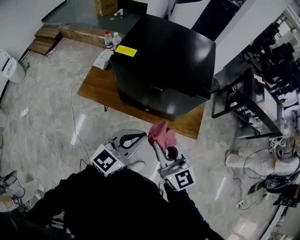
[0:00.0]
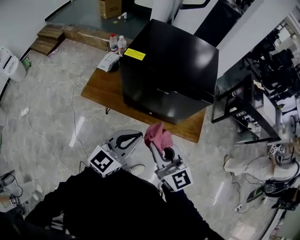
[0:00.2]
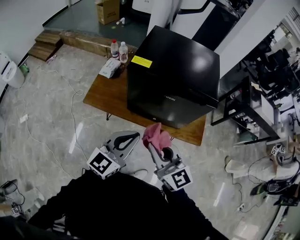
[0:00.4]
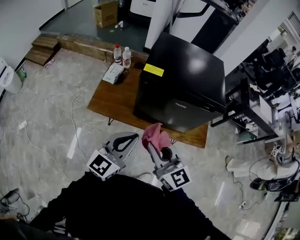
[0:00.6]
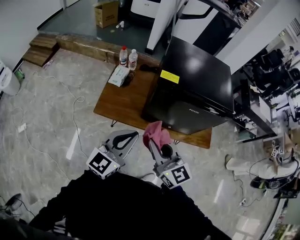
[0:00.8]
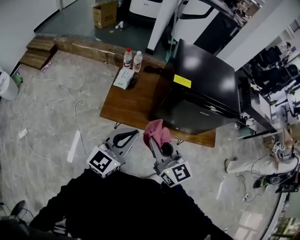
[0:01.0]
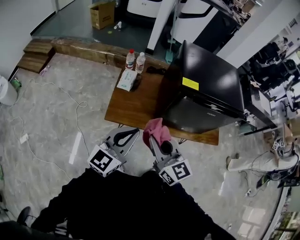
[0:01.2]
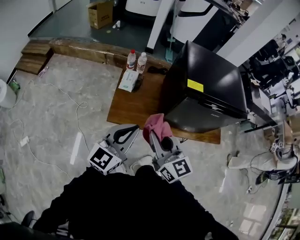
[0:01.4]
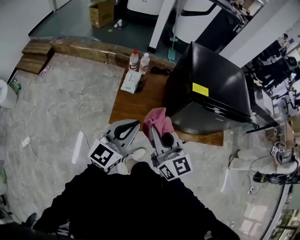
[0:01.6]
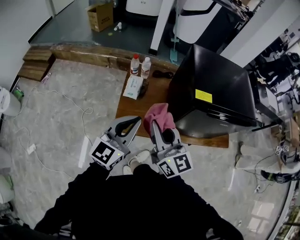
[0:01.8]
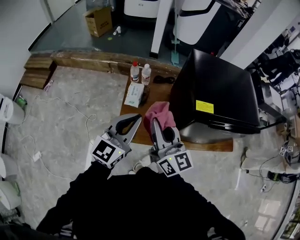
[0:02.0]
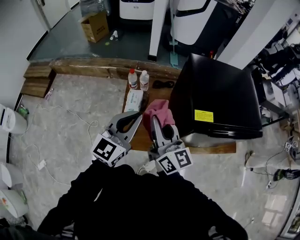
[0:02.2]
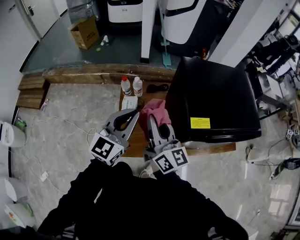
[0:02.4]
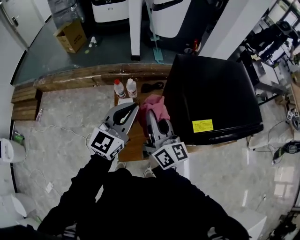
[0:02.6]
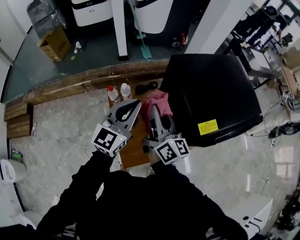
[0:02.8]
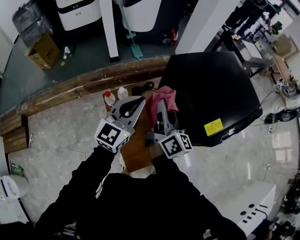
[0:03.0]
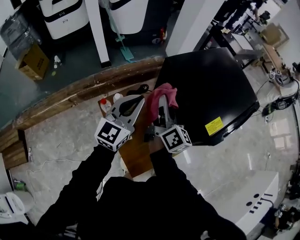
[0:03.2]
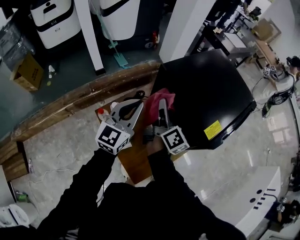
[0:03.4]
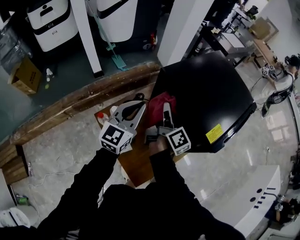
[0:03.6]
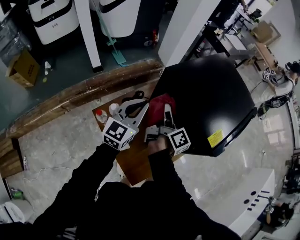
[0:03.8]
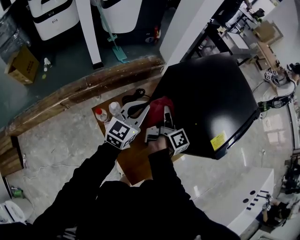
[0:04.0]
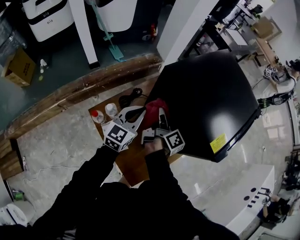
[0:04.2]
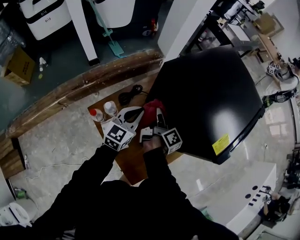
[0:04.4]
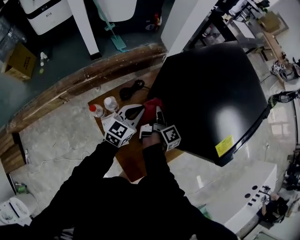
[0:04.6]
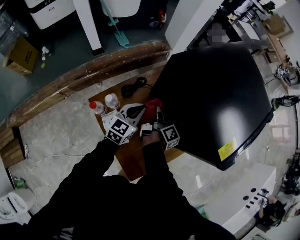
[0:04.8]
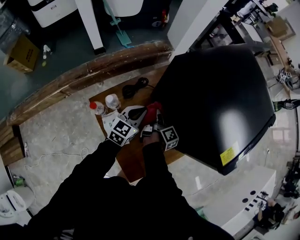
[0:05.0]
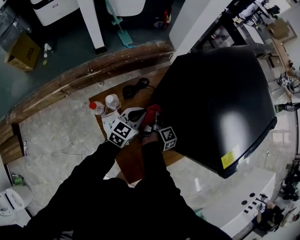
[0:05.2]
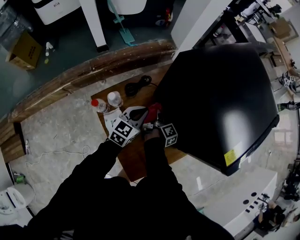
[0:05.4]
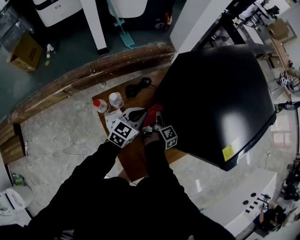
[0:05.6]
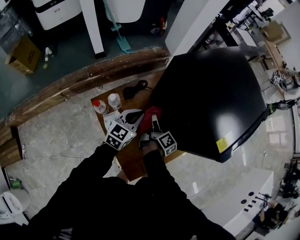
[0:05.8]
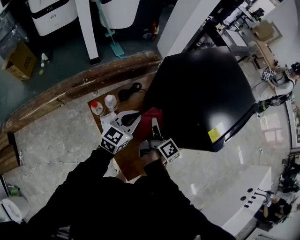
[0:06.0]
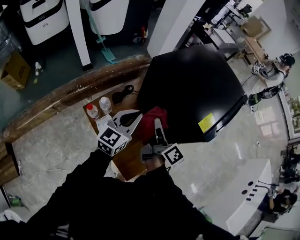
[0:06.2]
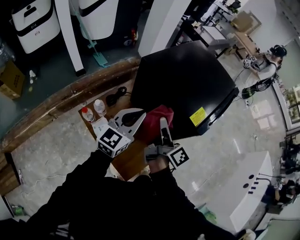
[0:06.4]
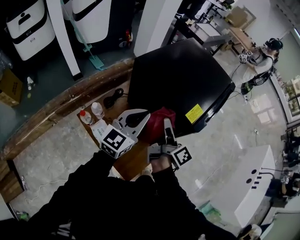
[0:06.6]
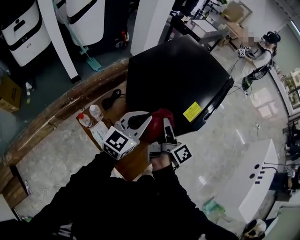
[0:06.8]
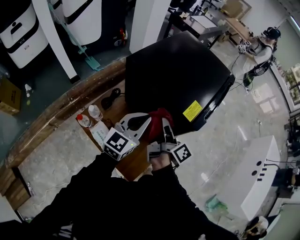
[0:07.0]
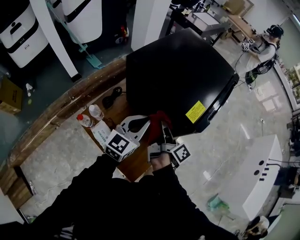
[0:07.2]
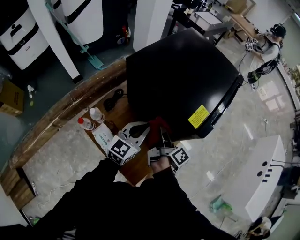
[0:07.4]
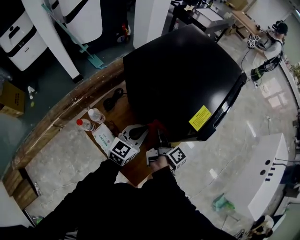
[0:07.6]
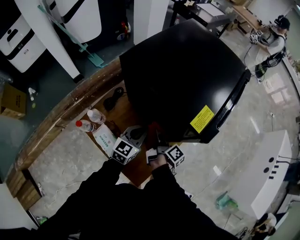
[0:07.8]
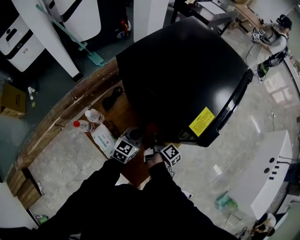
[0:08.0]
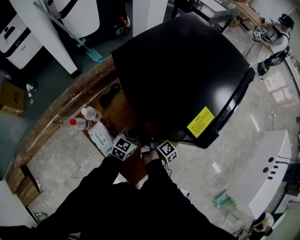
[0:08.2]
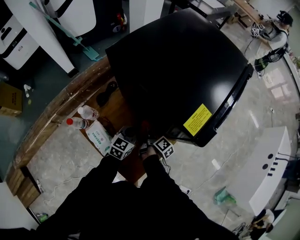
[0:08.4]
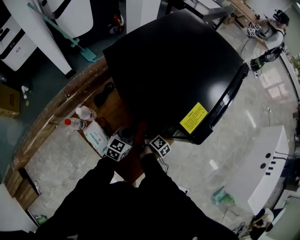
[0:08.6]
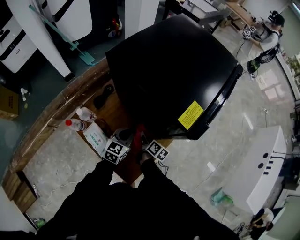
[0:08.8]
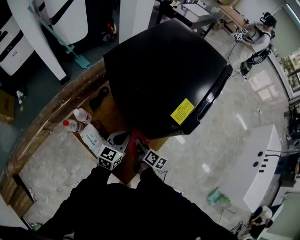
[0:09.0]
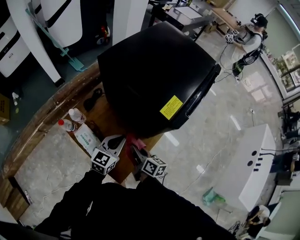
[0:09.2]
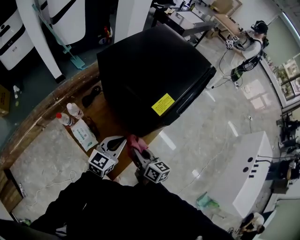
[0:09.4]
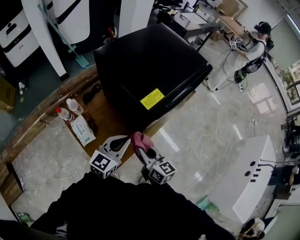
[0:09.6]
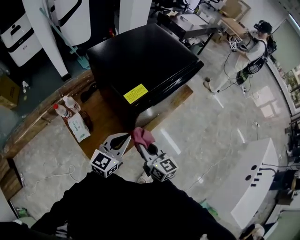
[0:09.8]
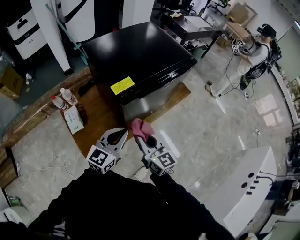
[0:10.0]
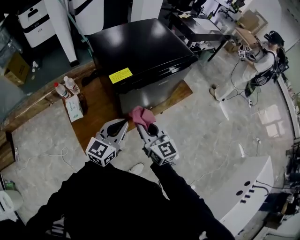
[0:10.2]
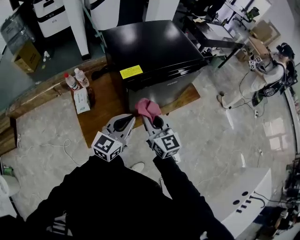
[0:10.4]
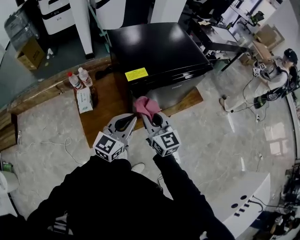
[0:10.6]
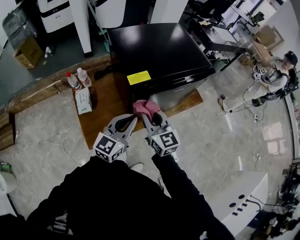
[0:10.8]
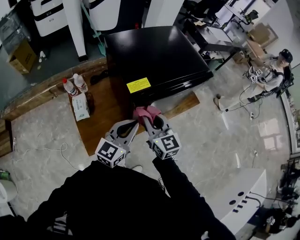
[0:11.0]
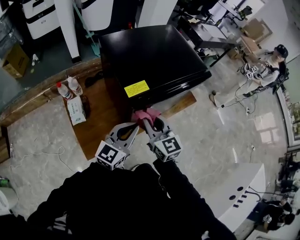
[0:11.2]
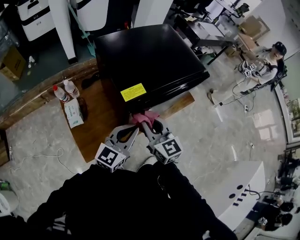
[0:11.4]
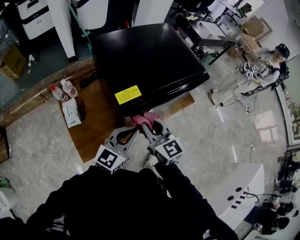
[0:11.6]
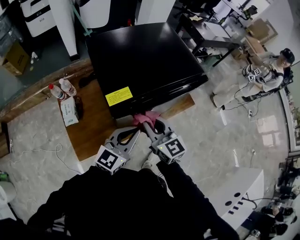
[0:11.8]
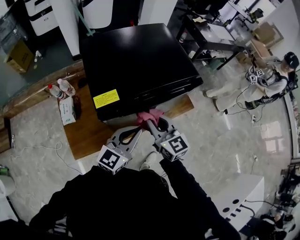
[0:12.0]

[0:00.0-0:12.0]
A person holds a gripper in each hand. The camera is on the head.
0:00.0 to 0:01.6: Both grippers are carried to the left, approximately 50 cm.
0:01.6 to 0:03.0: The left gripper moves about 40 cm, and rotates some 30 degrees, while the right gripper moves approximately 40 cm, and turns by approximately 60 degrees.
0:03.0 to 0:04.4: The two grippers go some 20 cm downward and forward. The right gripper changes its angle by about 50 degrees.
0:04.4 to 0:06.0: Both grippers travel together backward, approximately 10 cm. The right gripper goes downward and returns, roughly 20 cm each way, while the left gripper goes downward and returns, some 10 cm each way.
0:06.0 to 0:07.6: The two grippers go roughly 15 cm to the right. The right gripper travels upward and back again, about 15 cm each way, and changes its angle by some 20 degrees; the left gripper goes upward and returns, some 15 cm each way.
0:07.6 to 0:09.0: The right gripper travels downward and backward by about 15 cm, and rotates roughly 30 degrees. The left gripper heads downward, covering about 5 cm.
0:09.0 to 0:10.4: The right gripper shifts roughly 30 cm upward, and rolls counterclockwise, seen from behind, by about 60 degrees. The left gripper changes place by some 35 cm, and changes its angle by some 30 degrees.
0:10.4 to 0:12.0: The grippers both shift forward and to the right by about 15 cm.

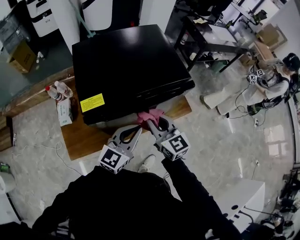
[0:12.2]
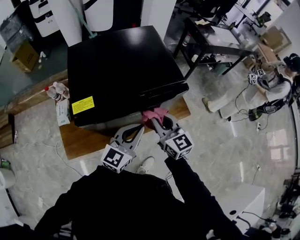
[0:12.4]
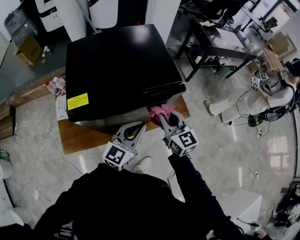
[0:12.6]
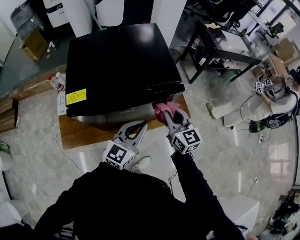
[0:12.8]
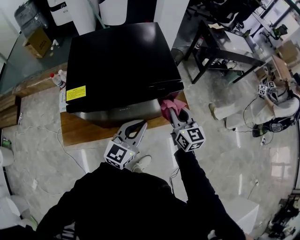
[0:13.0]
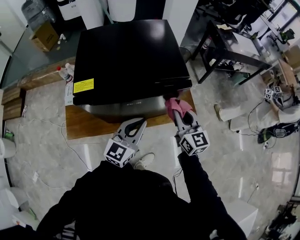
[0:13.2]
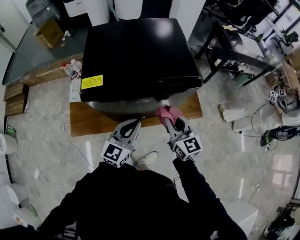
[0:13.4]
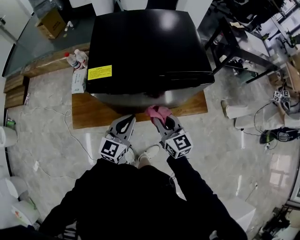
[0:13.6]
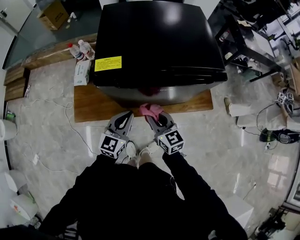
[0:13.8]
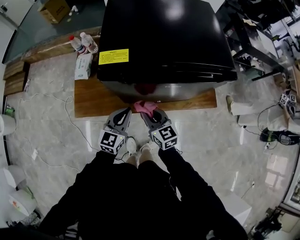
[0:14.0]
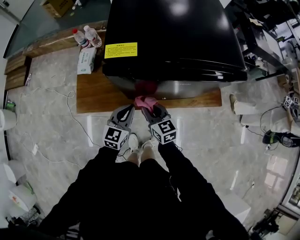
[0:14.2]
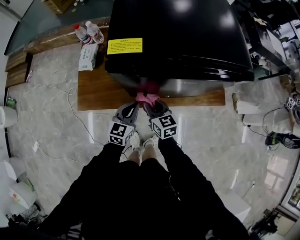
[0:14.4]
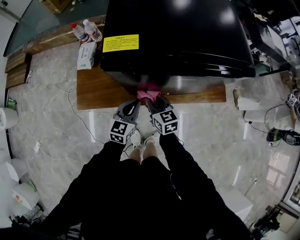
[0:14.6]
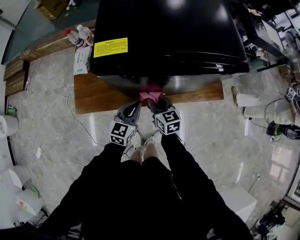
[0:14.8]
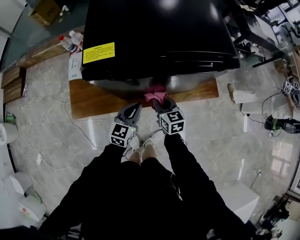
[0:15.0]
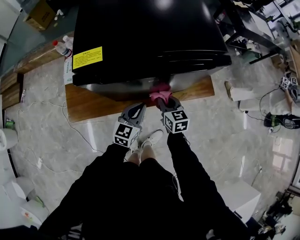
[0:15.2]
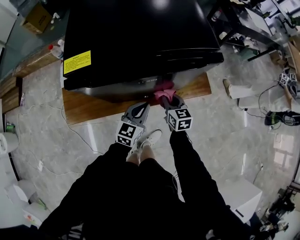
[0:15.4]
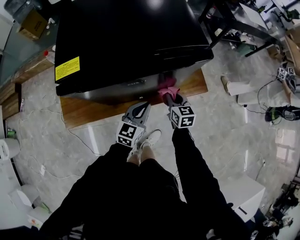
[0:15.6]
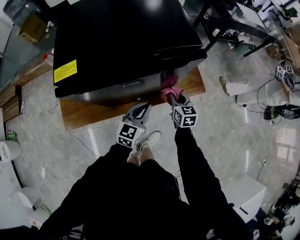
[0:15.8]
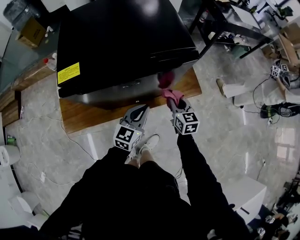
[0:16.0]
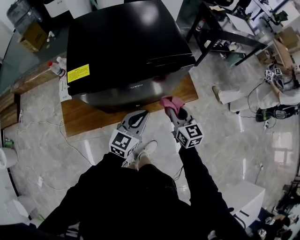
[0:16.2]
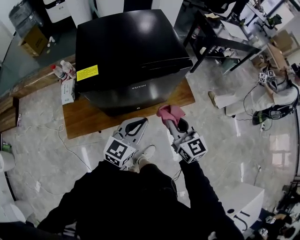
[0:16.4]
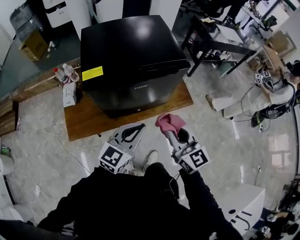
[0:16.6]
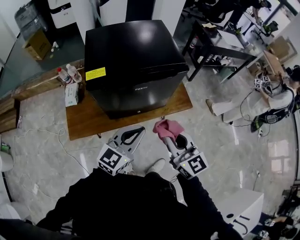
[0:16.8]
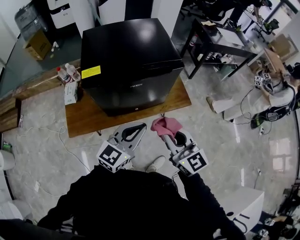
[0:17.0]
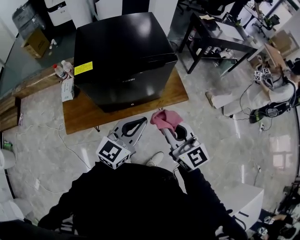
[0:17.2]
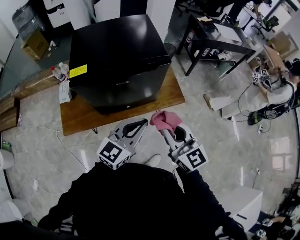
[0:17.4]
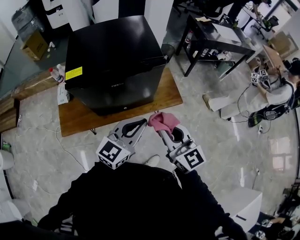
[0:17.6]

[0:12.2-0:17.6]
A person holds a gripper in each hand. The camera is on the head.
0:12.2 to 0:13.6: Both grippers move downward, approximately 10 cm. The left gripper reaches some 10 cm to the right, then returns, and rotates approximately 20 degrees, while the right gripper goes to the right and returns, about 15 cm each way.
0:13.6 to 0:15.0: The two grippers go some 15 cm downward.
0:15.0 to 0:16.2: Both grippers move to the right and upward, roughly 20 cm.
0:16.2 to 0:17.6: The left gripper shifts about 20 cm upward, backward and to the right, while the right gripper heads upward and backward, covering about 25 cm.

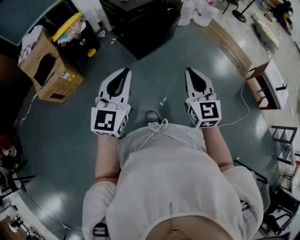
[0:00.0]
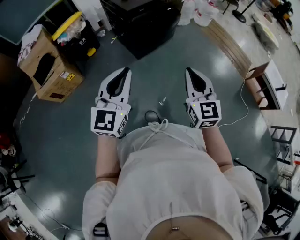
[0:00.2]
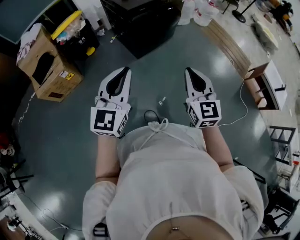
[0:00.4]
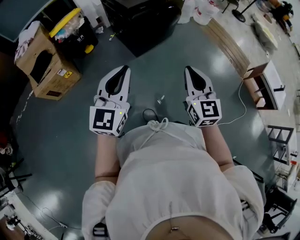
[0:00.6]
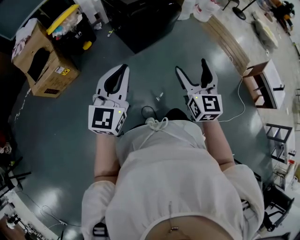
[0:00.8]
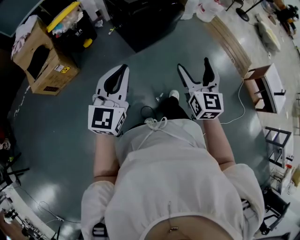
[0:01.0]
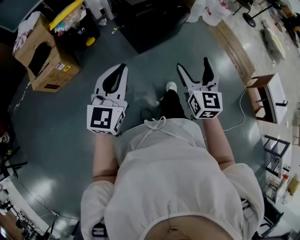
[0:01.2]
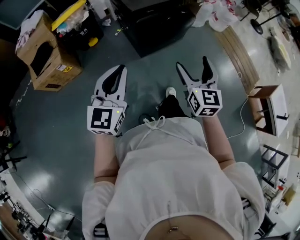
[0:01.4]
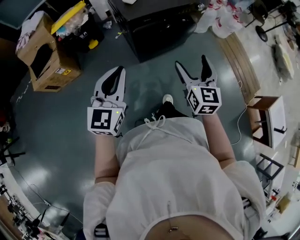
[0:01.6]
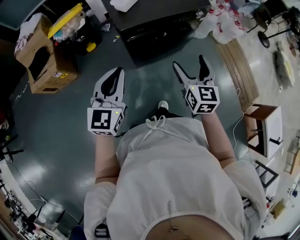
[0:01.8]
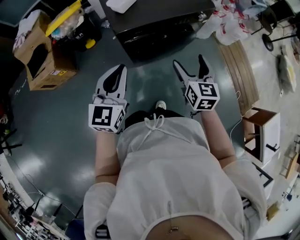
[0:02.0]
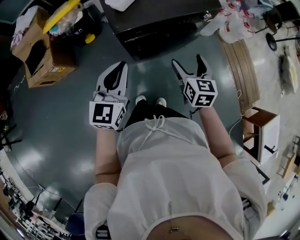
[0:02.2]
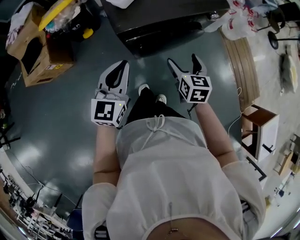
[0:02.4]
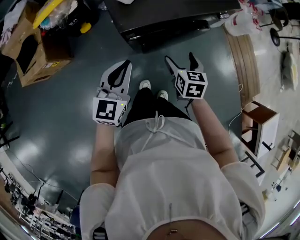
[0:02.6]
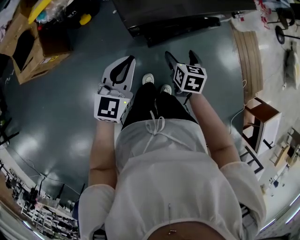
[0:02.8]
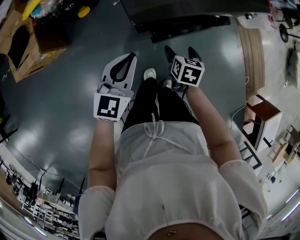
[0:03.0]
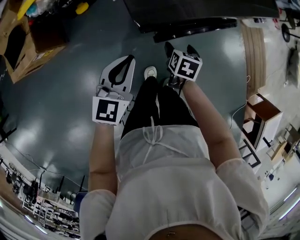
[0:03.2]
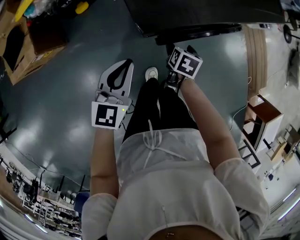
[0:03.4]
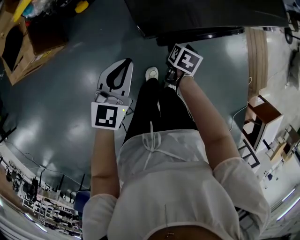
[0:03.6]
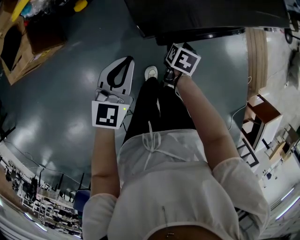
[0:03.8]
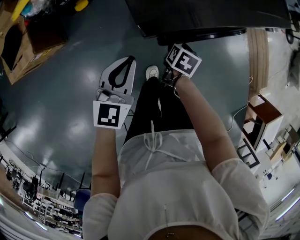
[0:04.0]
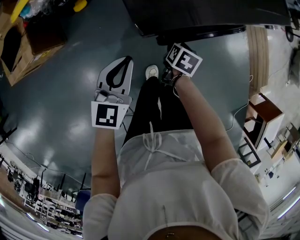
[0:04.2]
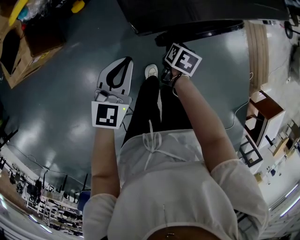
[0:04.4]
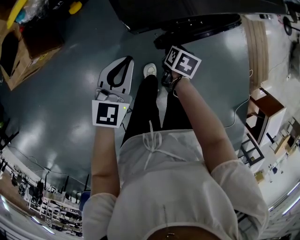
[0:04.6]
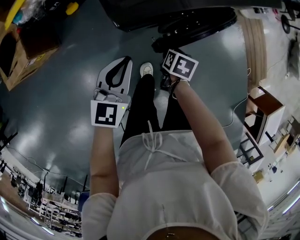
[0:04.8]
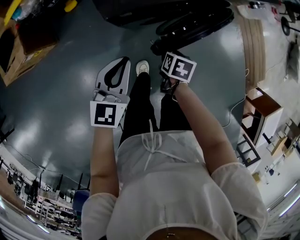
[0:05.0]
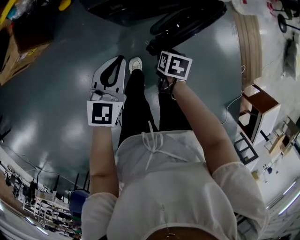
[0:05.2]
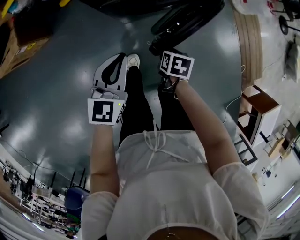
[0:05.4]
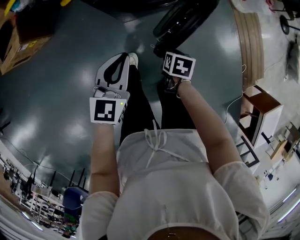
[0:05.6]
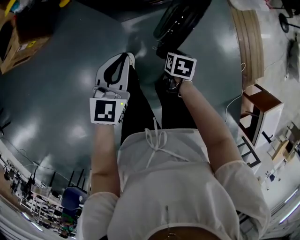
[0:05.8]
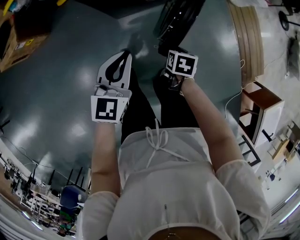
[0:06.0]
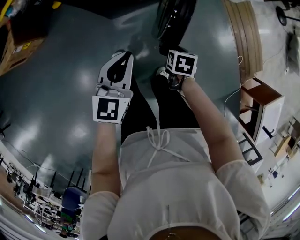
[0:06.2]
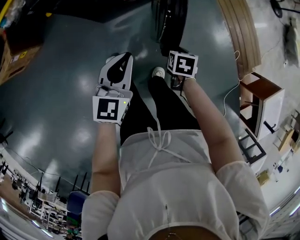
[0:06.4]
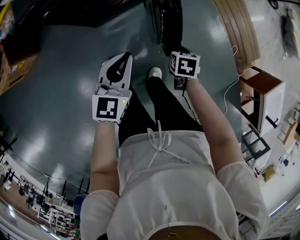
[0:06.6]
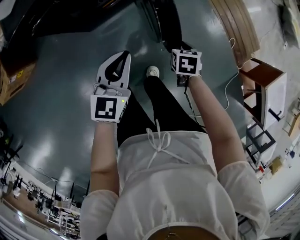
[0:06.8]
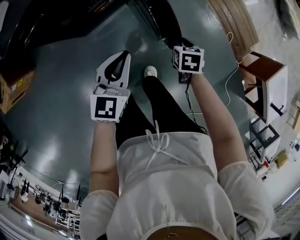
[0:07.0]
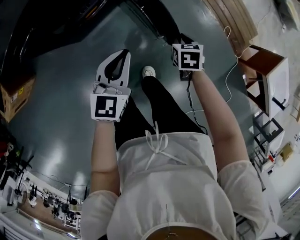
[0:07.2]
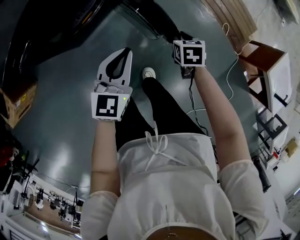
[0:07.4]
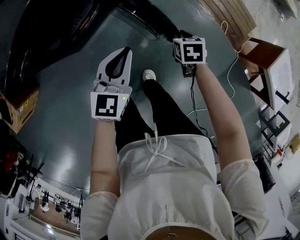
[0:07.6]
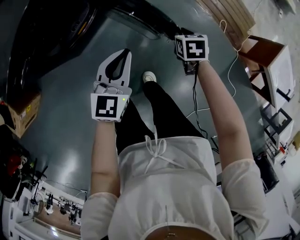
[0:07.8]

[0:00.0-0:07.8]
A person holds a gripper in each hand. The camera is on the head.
0:00.0 to 0:01.6: Both grippers move forward, some 30 cm. The right gripper opens its fingers.
0:01.6 to 0:03.2: Both grippers travel together downward and forward, roughly 40 cm. The right gripper tilts its fingers about 50 degrees downward; the left gripper swivels about 20 degrees.
0:03.2 to 0:04.6: The right gripper shifts by approximately 5 cm, and closes.
0:04.6 to 0:06.2: Both grippers move to the right and backward, roughly 35 cm.
0:06.2 to 0:07.8: Both grippers travel together to the right and forward, roughly 35 cm. The left gripper rotates about 20 degrees.
